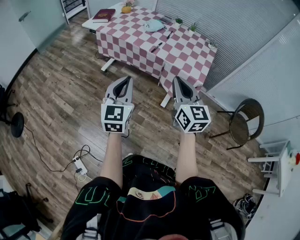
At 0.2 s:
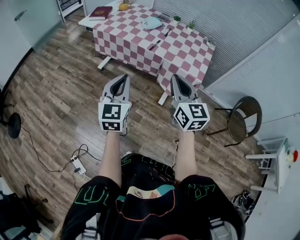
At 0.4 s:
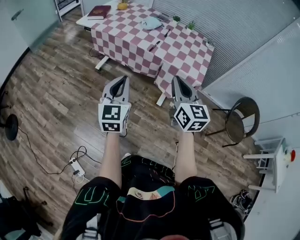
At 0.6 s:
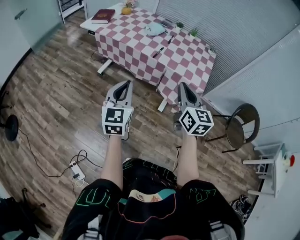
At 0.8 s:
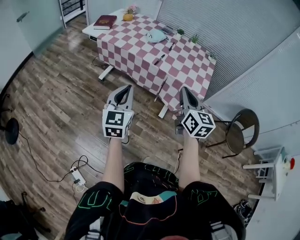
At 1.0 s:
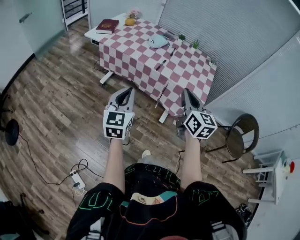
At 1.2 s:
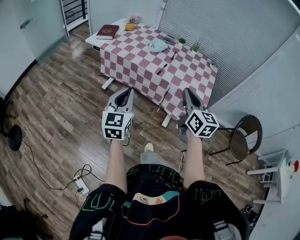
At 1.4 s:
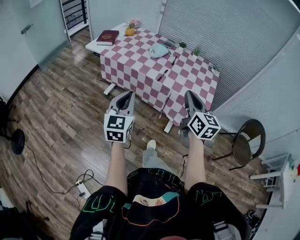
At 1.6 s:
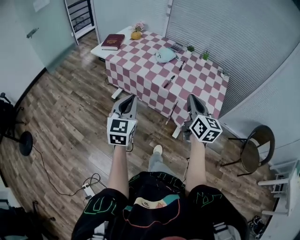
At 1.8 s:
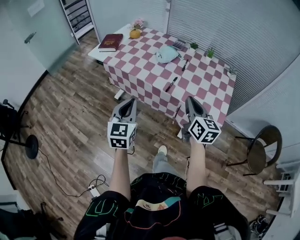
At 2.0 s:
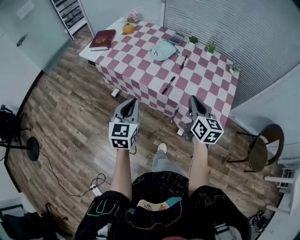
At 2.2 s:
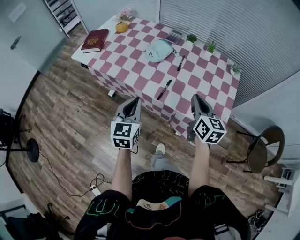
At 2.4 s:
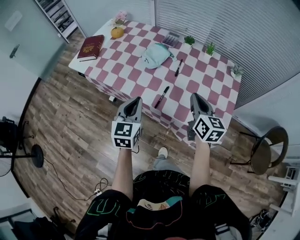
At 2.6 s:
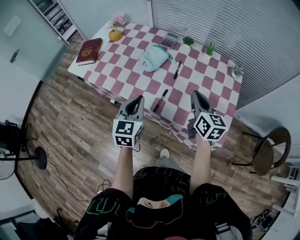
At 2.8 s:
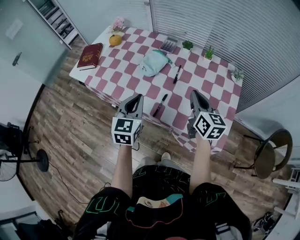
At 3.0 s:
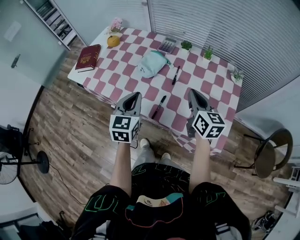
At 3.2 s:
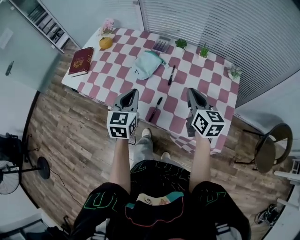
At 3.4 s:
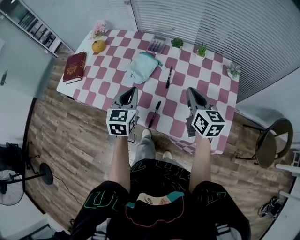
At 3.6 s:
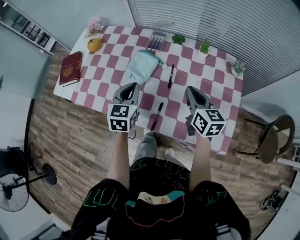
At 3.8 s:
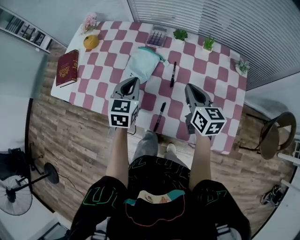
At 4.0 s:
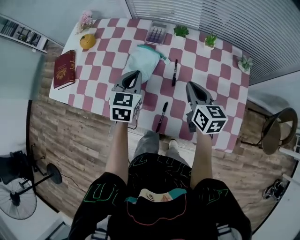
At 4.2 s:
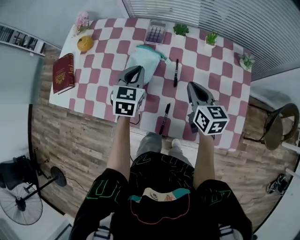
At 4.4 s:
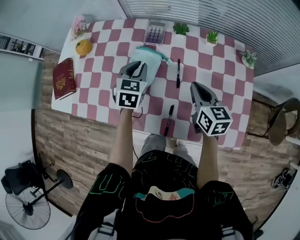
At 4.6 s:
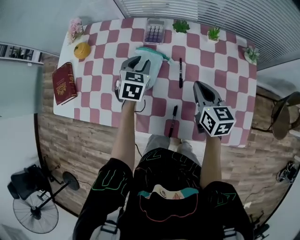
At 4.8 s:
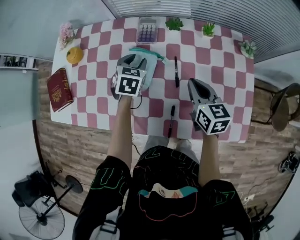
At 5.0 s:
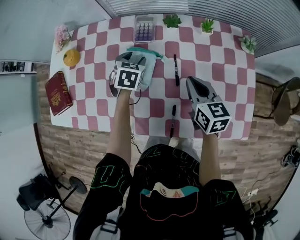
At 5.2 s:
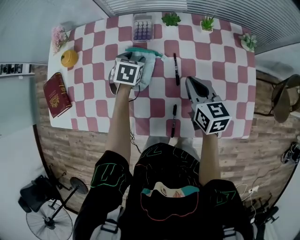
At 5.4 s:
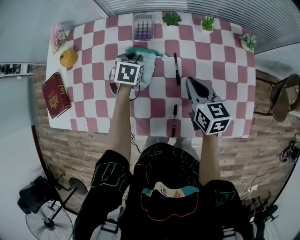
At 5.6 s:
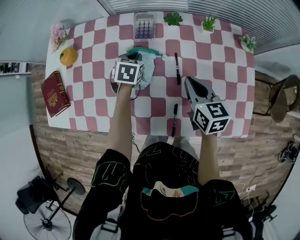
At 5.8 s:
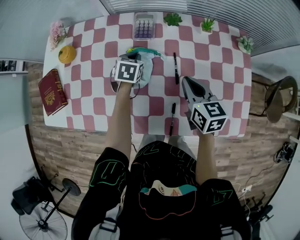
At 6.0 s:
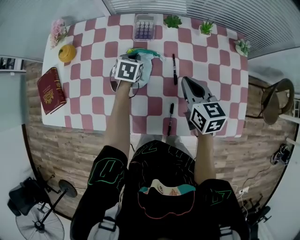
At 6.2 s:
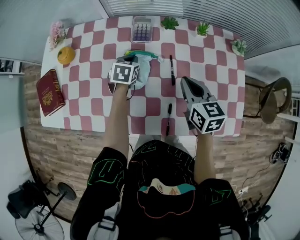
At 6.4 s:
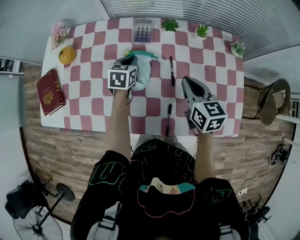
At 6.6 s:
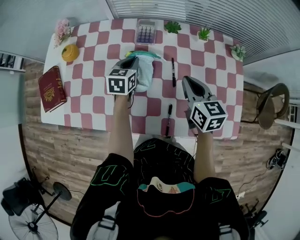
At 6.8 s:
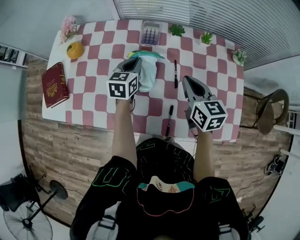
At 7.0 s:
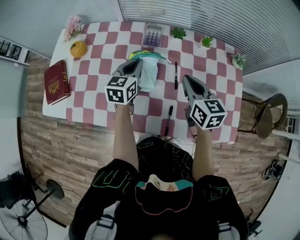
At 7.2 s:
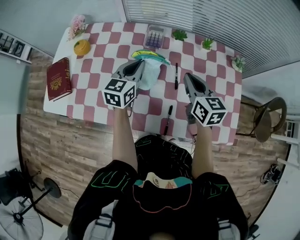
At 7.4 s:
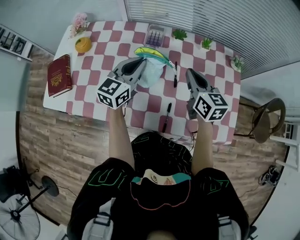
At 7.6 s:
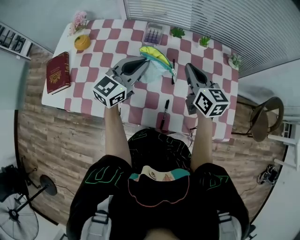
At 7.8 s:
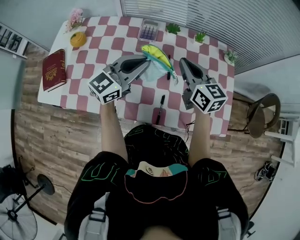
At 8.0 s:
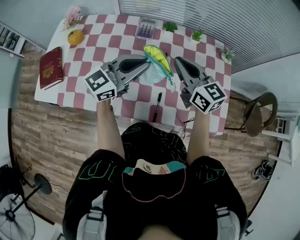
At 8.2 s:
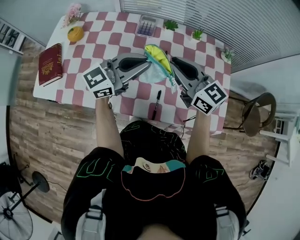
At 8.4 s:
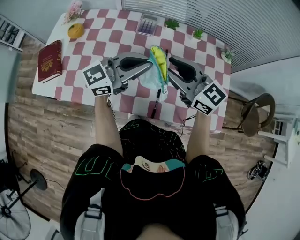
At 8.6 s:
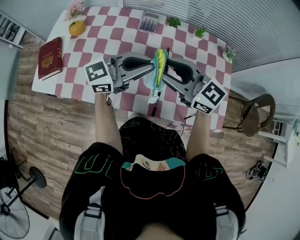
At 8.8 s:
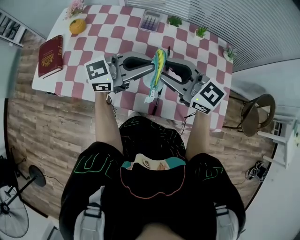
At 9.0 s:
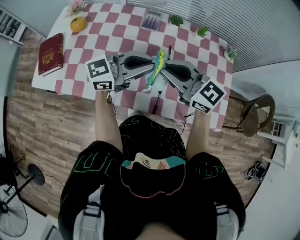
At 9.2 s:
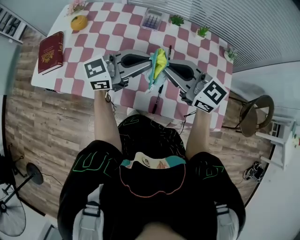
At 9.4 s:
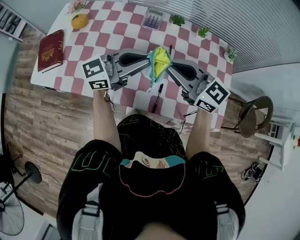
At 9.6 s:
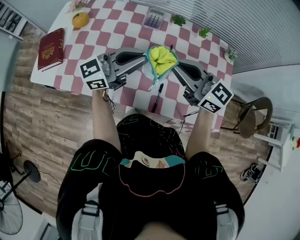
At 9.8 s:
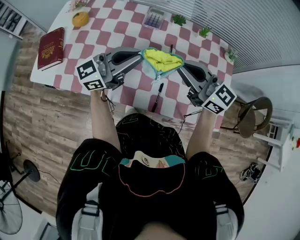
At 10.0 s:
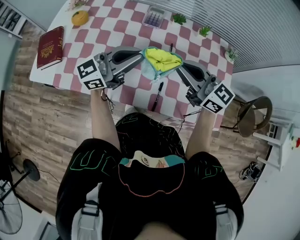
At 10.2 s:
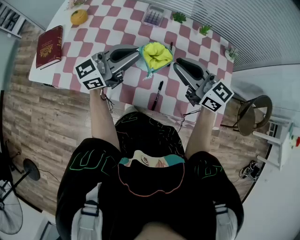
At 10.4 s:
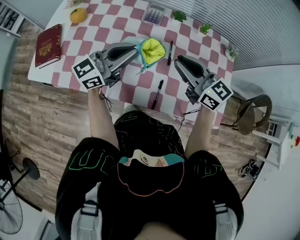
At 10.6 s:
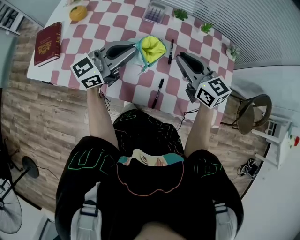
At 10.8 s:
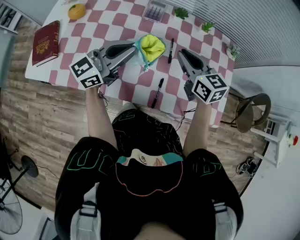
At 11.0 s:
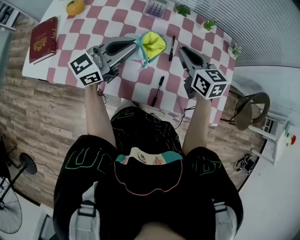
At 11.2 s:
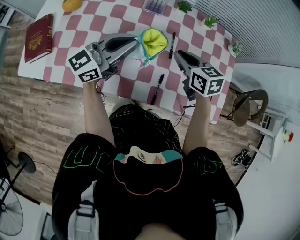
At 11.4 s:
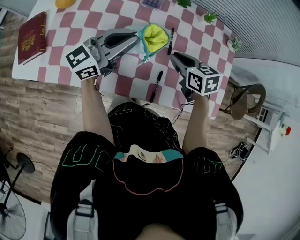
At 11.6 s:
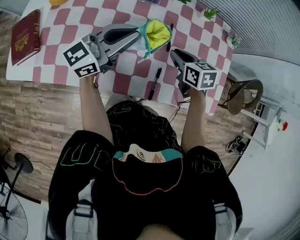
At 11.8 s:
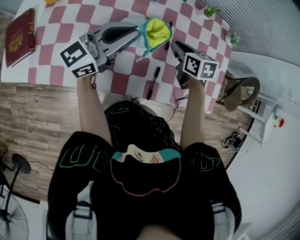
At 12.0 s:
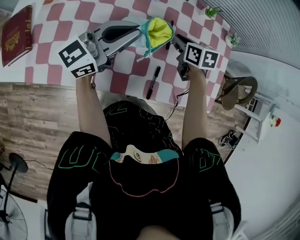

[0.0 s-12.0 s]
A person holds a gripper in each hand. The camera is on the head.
0.0 to 1.6 s: The two grippers go about 15 cm forward.
1.6 to 3.0 s: Both grippers move forward, some 30 cm.
3.0 to 4.4 s: The right gripper shifts roughly 15 cm forward and downward. The left gripper shifts roughly 25 cm forward, and turns by some 30 degrees.
4.4 to 6.0 s: The left gripper moves downward and forward, approximately 15 cm, and opens, then closes again.
6.0 to 7.6 s: The left gripper shifts about 25 cm upward and backward, and tilts its fingers some 50 degrees upward. Meanwhile the right gripper moves upward, roughly 10 cm.
7.6 to 9.0 s: The right gripper changes place by about 15 cm, changes its angle by about 40 degrees, and opens, then closes again. The left gripper moves roughly 10 cm, and rotates some 30 degrees.
9.0 to 10.4 s: The left gripper ends up approximately 5 cm from where it was. Meanwhile the right gripper changes place by about 5 cm.
10.4 to 12.0 s: The right gripper is displaced downward and forward by about 20 cm, and angles its fingers downward, by about 40 degrees. Meanwhile the left gripper shifts by about 5 cm.

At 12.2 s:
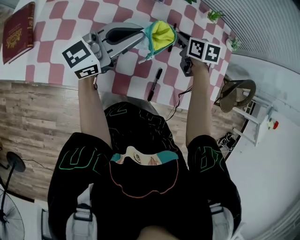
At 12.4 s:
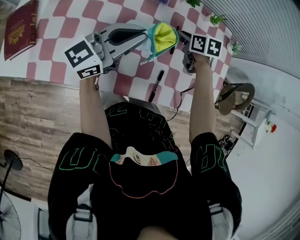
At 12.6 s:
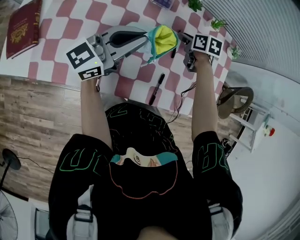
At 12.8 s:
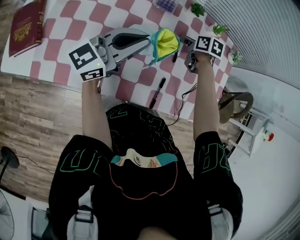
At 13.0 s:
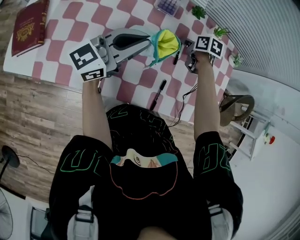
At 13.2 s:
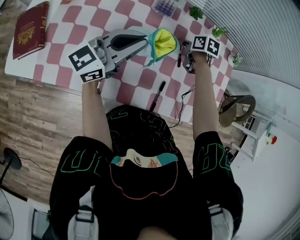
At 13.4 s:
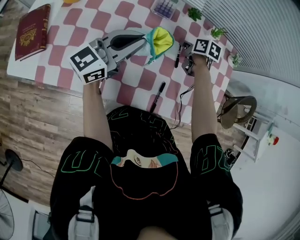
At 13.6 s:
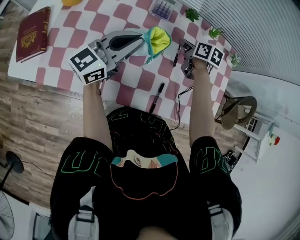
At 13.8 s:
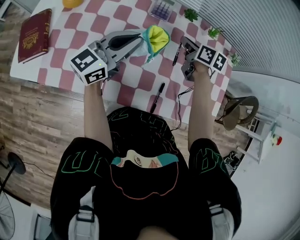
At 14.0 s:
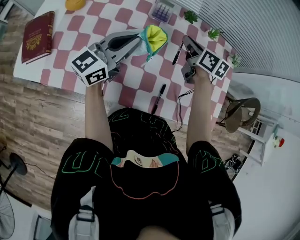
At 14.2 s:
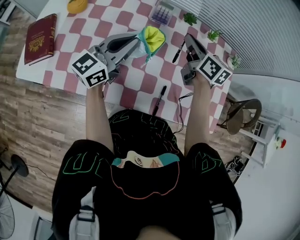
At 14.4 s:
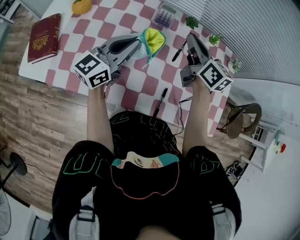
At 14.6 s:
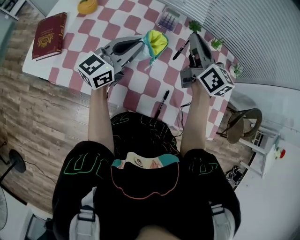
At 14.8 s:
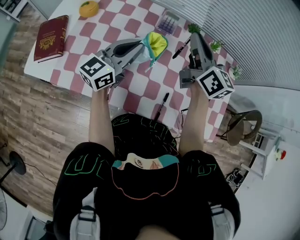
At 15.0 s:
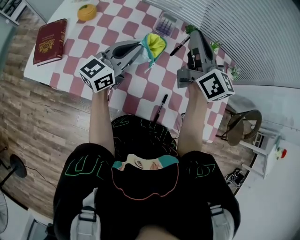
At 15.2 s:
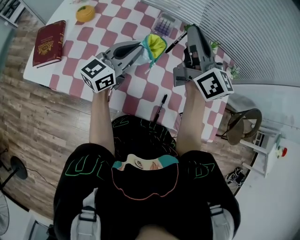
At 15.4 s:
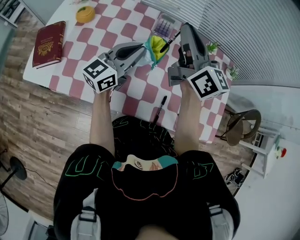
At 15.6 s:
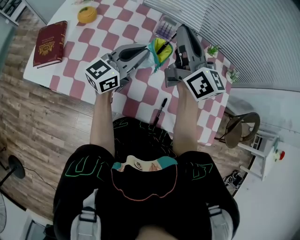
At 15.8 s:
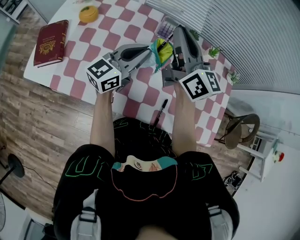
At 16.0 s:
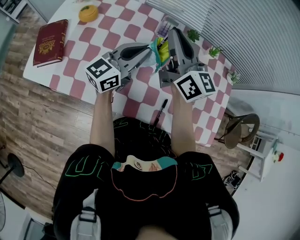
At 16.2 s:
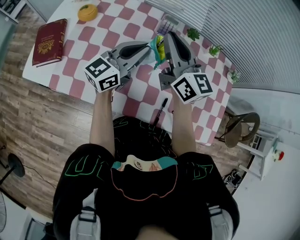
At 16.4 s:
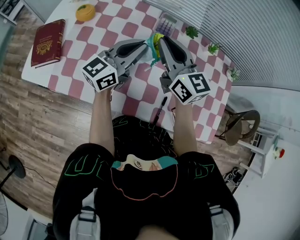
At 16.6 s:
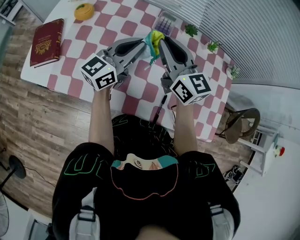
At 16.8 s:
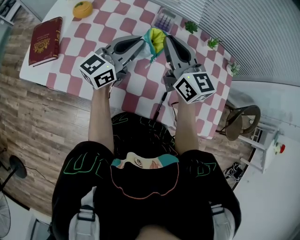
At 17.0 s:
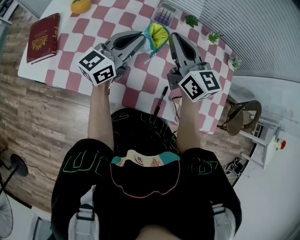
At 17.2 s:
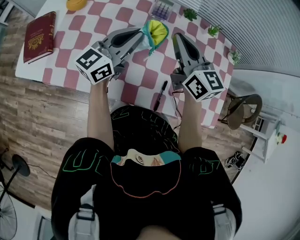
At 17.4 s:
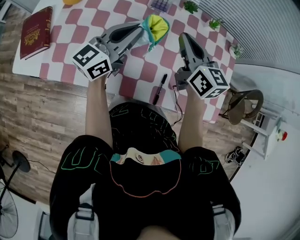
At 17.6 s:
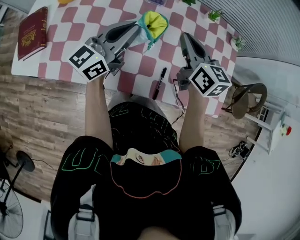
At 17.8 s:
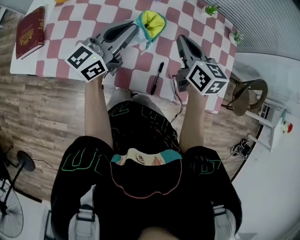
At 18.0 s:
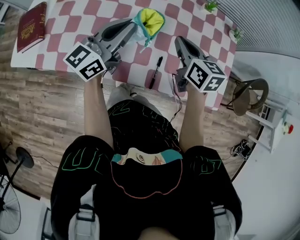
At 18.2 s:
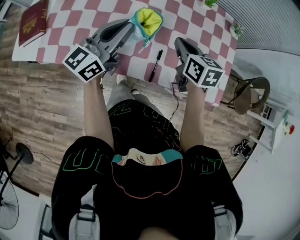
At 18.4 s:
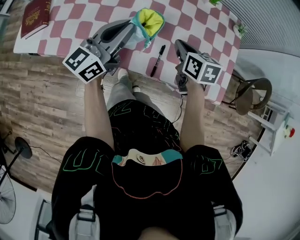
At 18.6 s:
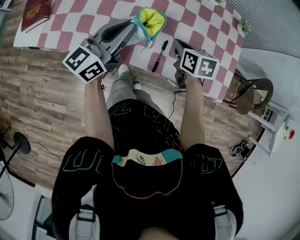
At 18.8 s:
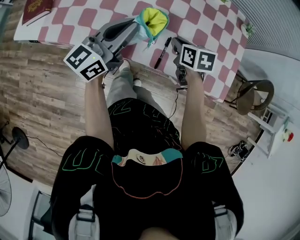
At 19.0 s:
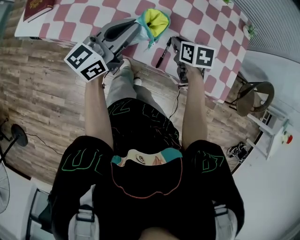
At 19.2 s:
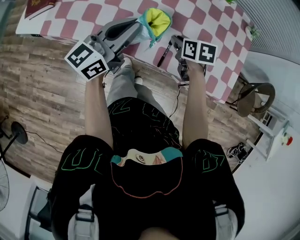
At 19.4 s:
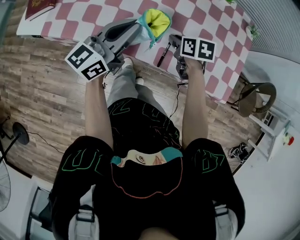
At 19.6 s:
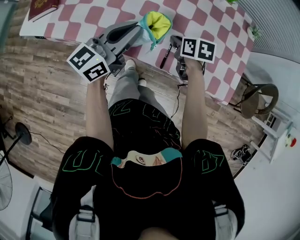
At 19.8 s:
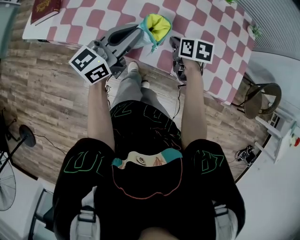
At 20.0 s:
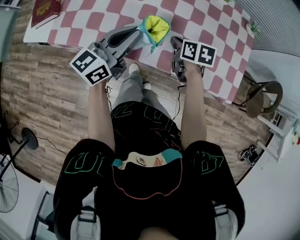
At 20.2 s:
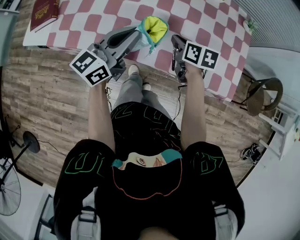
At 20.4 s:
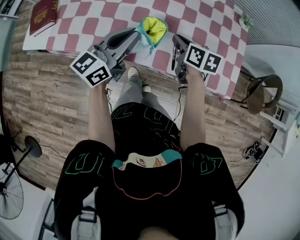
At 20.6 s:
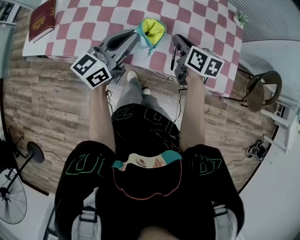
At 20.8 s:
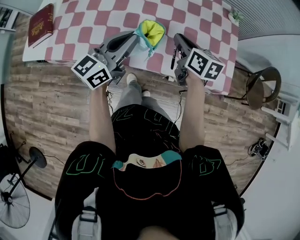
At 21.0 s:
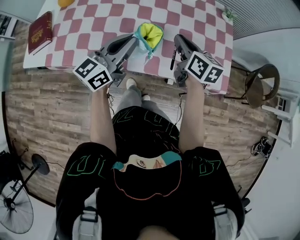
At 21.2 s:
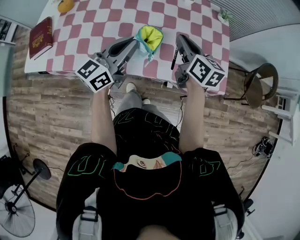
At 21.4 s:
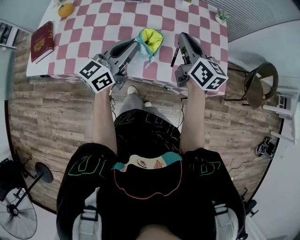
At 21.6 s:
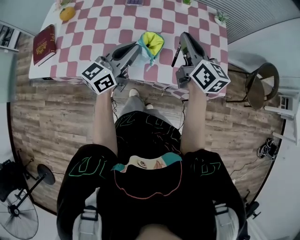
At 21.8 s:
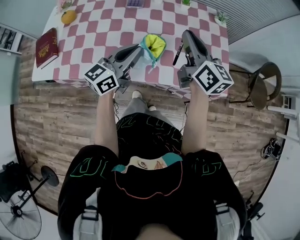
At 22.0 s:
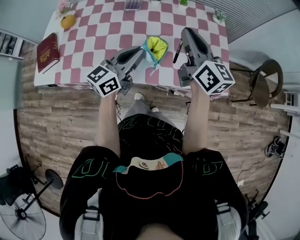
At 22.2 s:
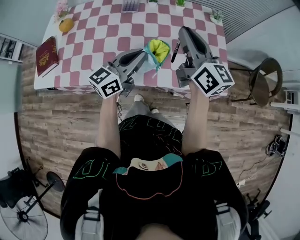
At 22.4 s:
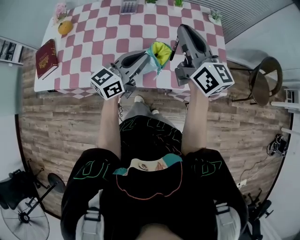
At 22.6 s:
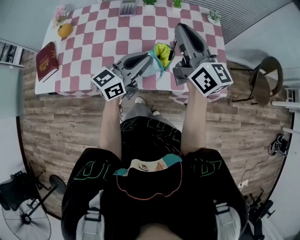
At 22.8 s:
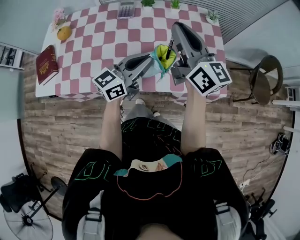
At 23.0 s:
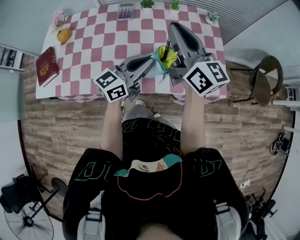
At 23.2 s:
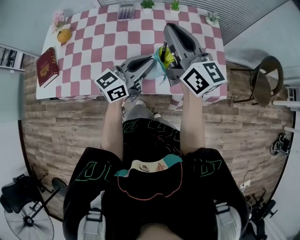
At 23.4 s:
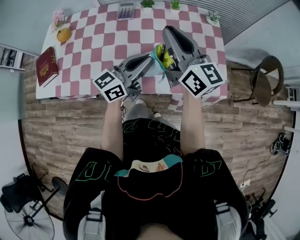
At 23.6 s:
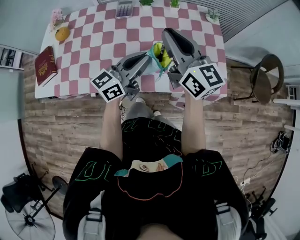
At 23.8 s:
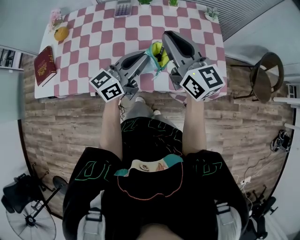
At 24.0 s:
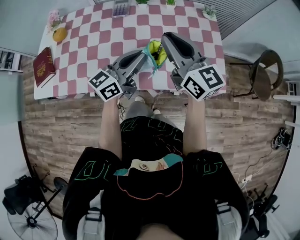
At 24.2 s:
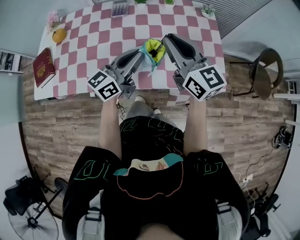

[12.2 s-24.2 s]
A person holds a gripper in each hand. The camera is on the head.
12.2 to 13.8 s: The right gripper shifts by roughly 5 cm.
13.8 to 15.2 s: The right gripper is displaced upward by about 25 cm, and points its fingers about 50 degrees further upward.
15.2 to 16.6 s: The right gripper heads downward and to the left, covering about 10 cm, and rotates about 20 degrees.
16.6 to 18.2 s: The right gripper is displaced to the right, downward and backward by about 20 cm, and tips its fingers downward by roughly 30 degrees. The left gripper goes about 10 cm backward and to the right.
18.2 to 19.8 s: The left gripper is displaced backward by some 5 cm. The right gripper moves downward, approximately 10 cm, and rotates roughly 20 degrees.
19.8 to 21.2 s: The right gripper is displaced upward and to the right by approximately 20 cm, and points its fingers roughly 40 degrees further upward. The left gripper heads to the right, covering roughly 5 cm.
21.2 to 22.6 s: The right gripper is displaced upward by some 15 cm, and rotates some 30 degrees. Meanwhile the left gripper is displaced to the right by about 5 cm.
22.6 to 24.2 s: The grippers stay close to where they were, moving slightly.
